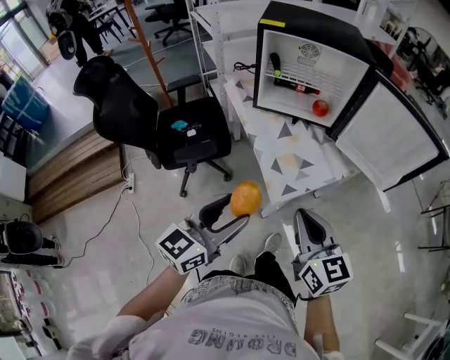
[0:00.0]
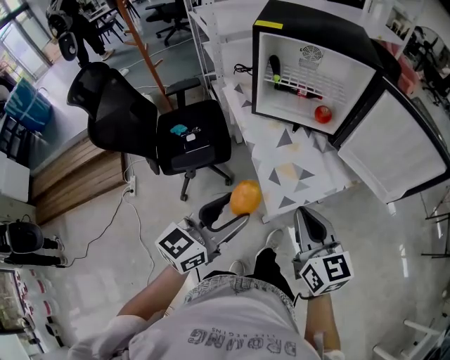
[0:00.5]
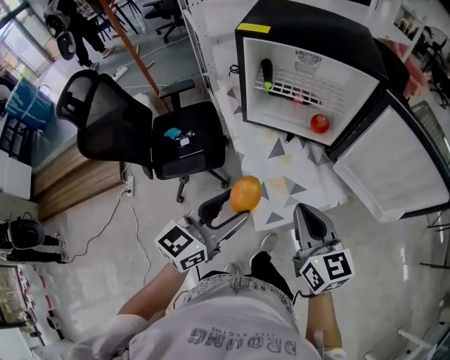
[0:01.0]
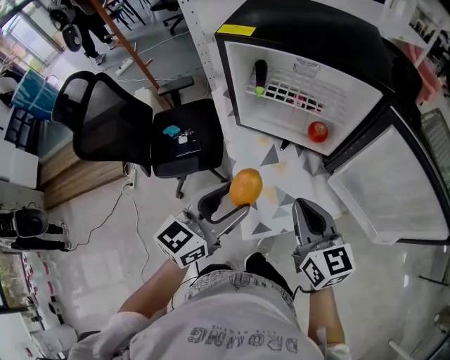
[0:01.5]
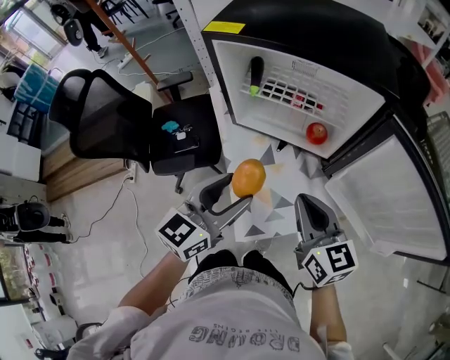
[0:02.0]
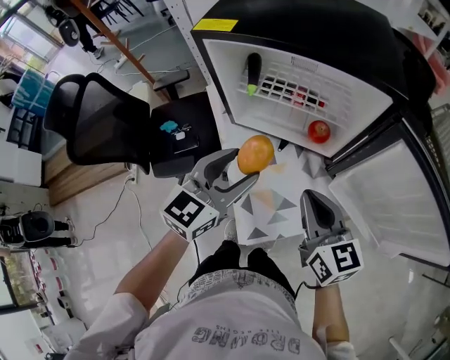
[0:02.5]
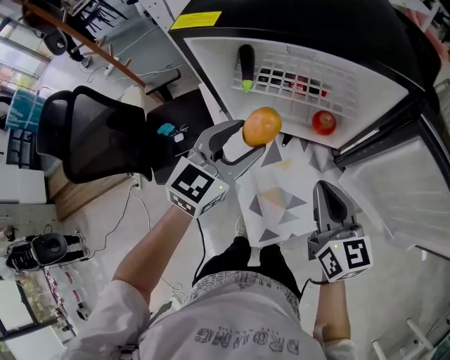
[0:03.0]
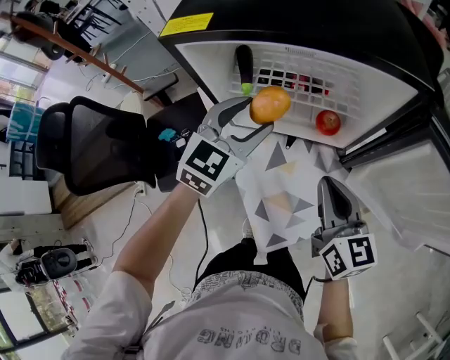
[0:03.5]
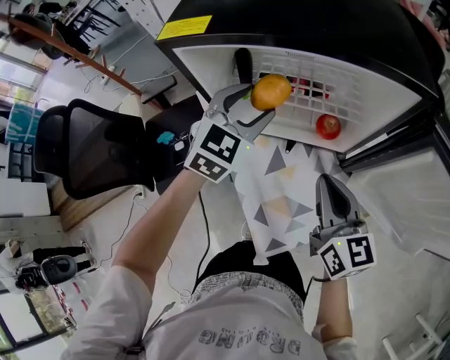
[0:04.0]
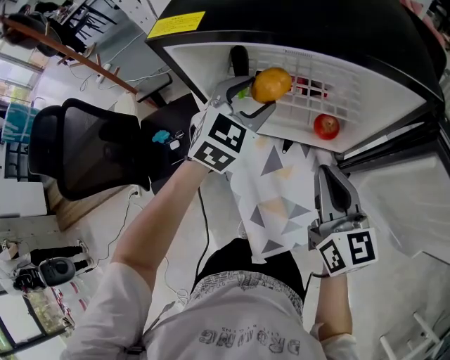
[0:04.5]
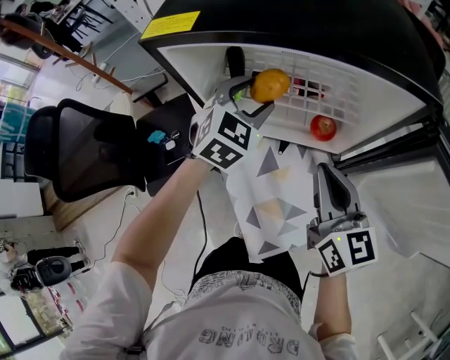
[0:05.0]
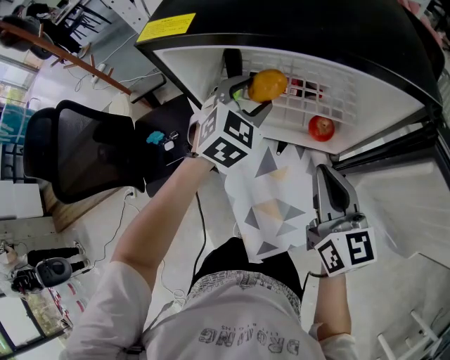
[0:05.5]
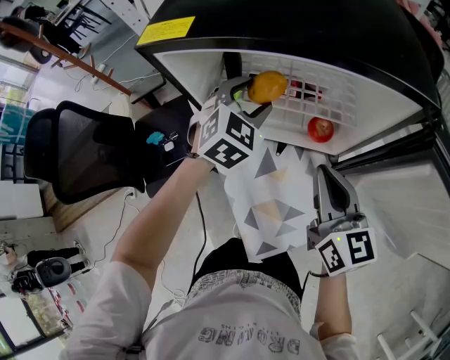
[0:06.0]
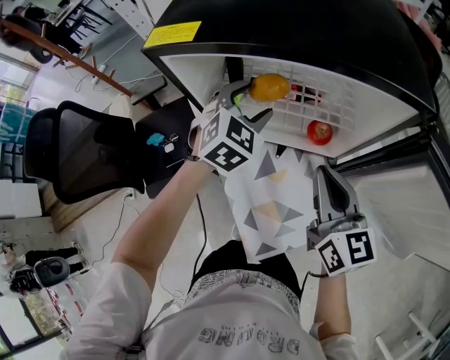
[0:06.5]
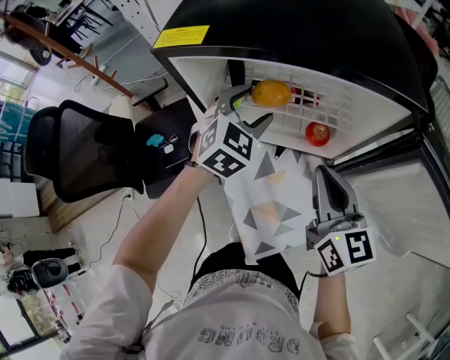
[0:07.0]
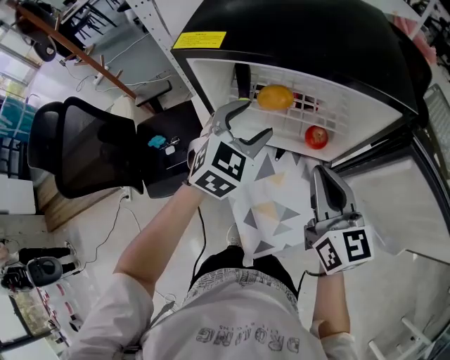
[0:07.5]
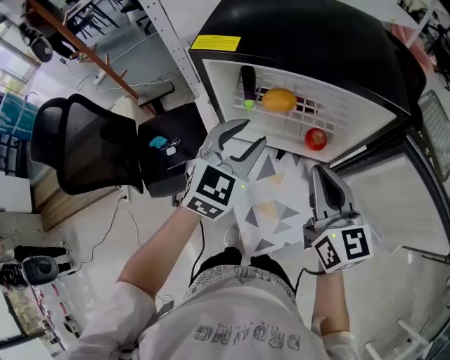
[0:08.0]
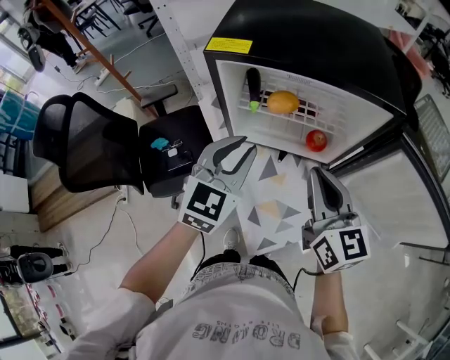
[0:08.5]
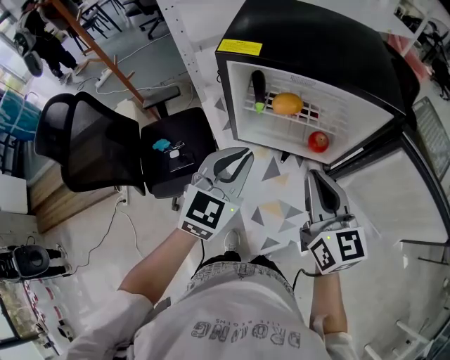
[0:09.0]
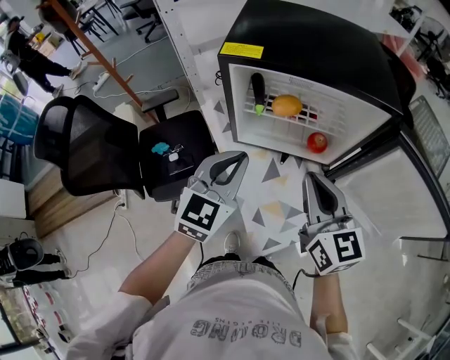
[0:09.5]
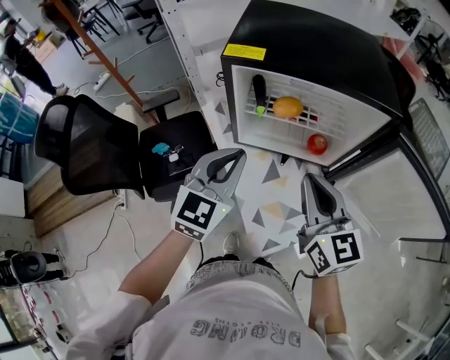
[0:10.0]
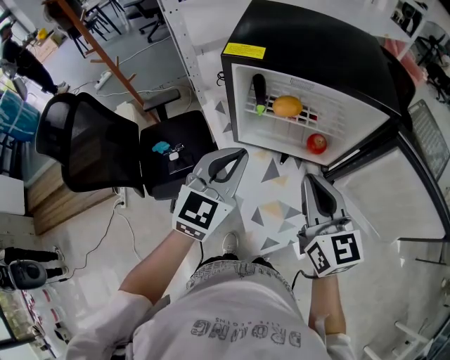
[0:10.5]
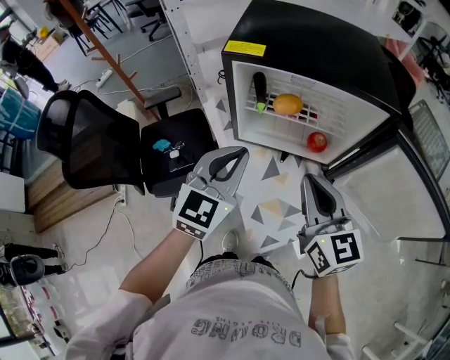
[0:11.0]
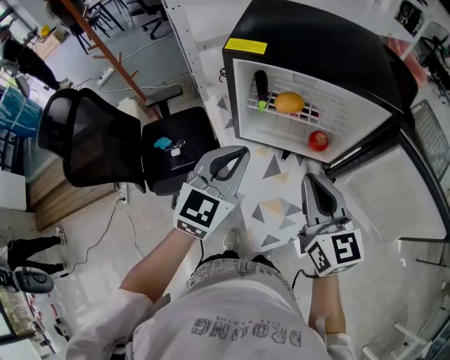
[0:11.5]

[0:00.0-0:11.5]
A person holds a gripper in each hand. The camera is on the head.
0:00.0 to 0:02.0: The right gripper goes approximately 30 cm forward. Meanwhile the left gripper travels forward and to the right by some 30 cm.
0:02.0 to 0:04.0: The right gripper is displaced forward by some 10 cm; the left gripper shifts about 25 cm forward, and changes its angle by roughly 40 degrees.
0:04.0 to 0:06.0: The left gripper changes place by approximately 5 cm.
0:06.0 to 0:07.5: The right gripper shifts by about 5 cm. Meanwhile the left gripper travels backward and upward by approximately 10 cm.
0:07.5 to 0:09.5: The left gripper is displaced backward and to the left by some 15 cm, and closes, while the right gripper goes roughly 10 cm to the left and backward.
0:09.5 to 0:11.5: The grippers stay close to where they were, moving slightly.

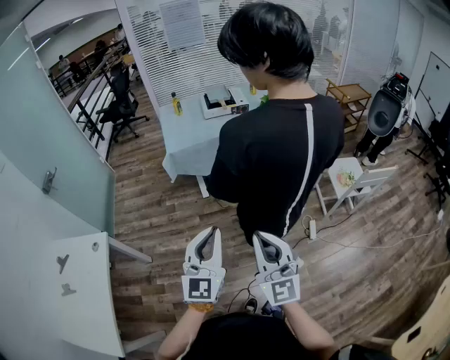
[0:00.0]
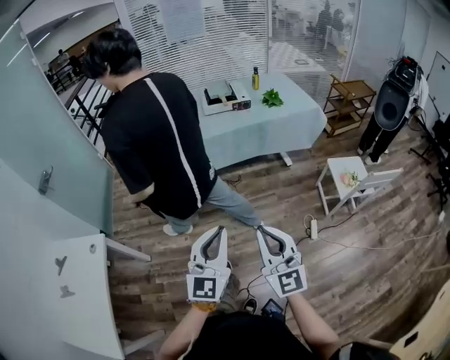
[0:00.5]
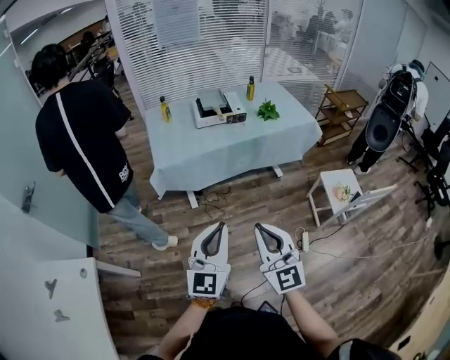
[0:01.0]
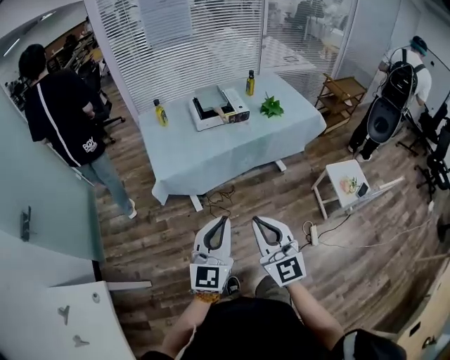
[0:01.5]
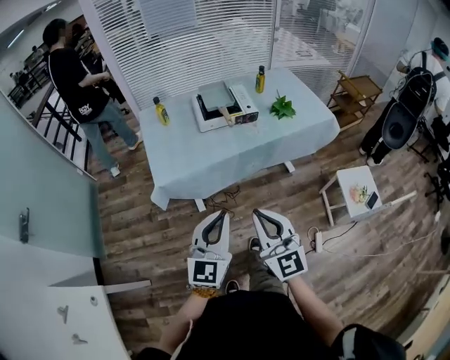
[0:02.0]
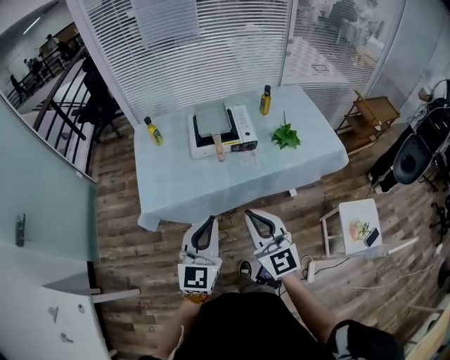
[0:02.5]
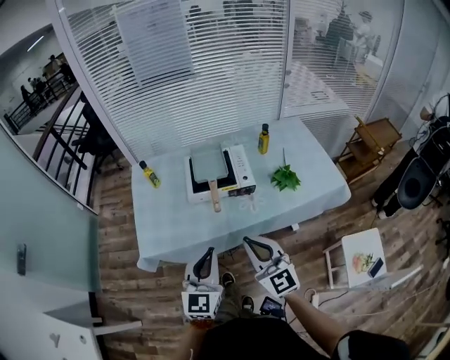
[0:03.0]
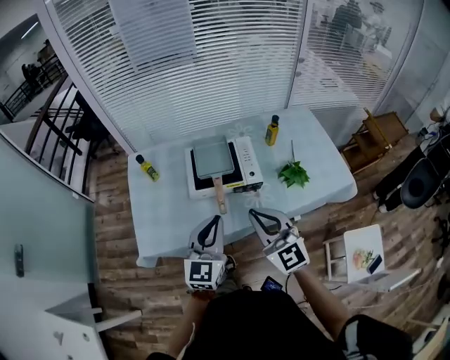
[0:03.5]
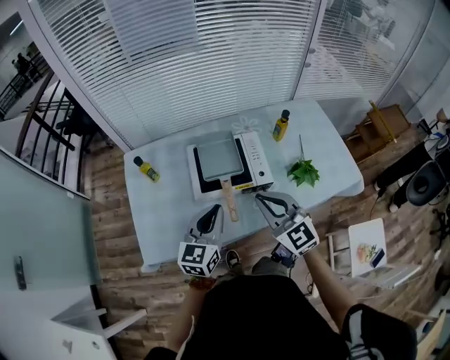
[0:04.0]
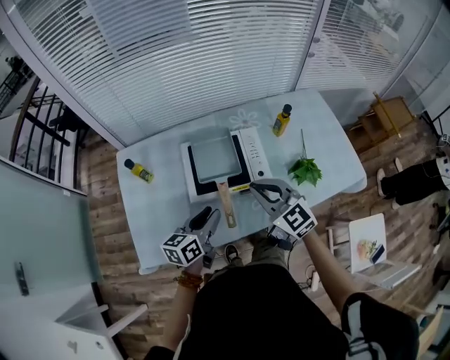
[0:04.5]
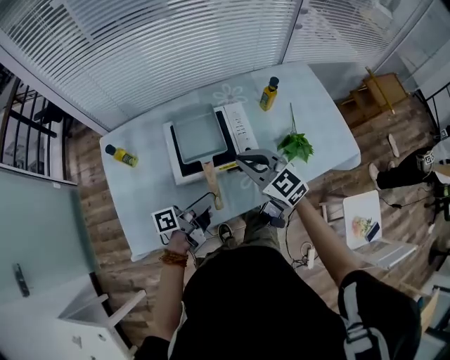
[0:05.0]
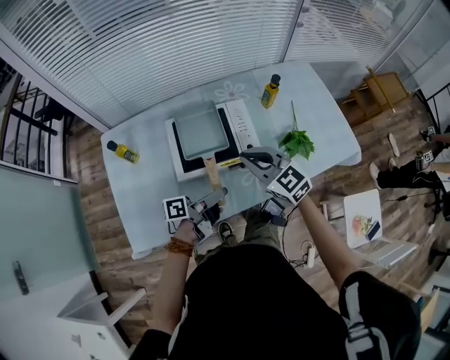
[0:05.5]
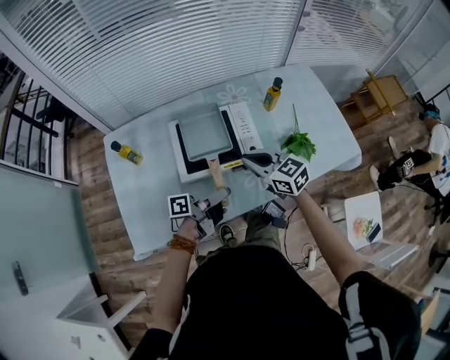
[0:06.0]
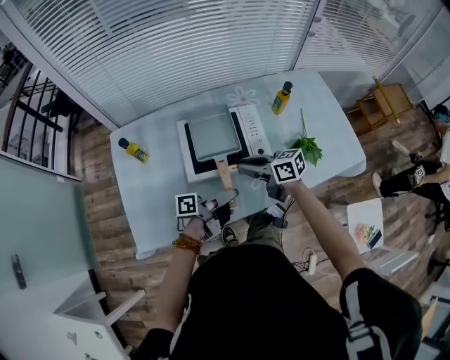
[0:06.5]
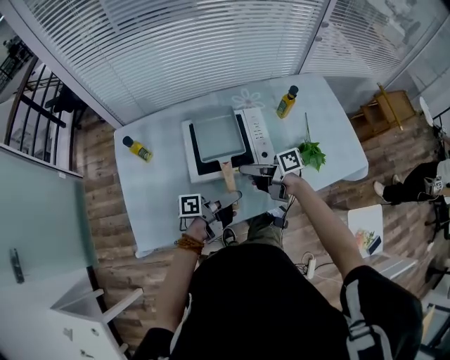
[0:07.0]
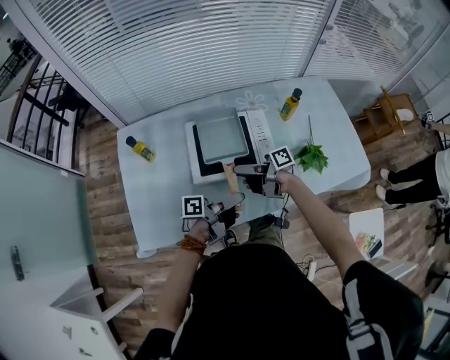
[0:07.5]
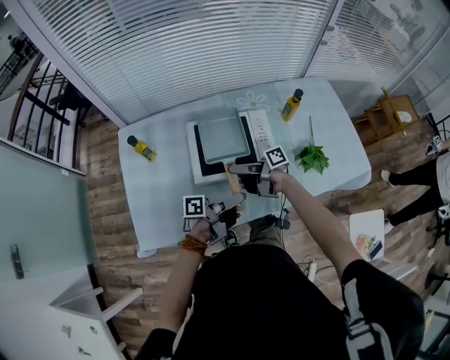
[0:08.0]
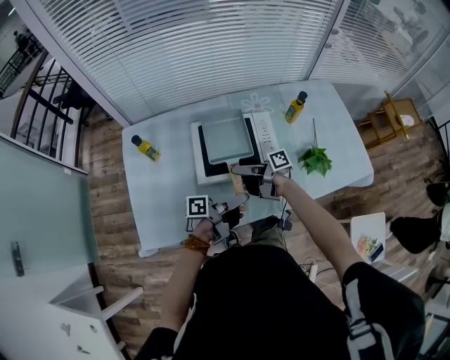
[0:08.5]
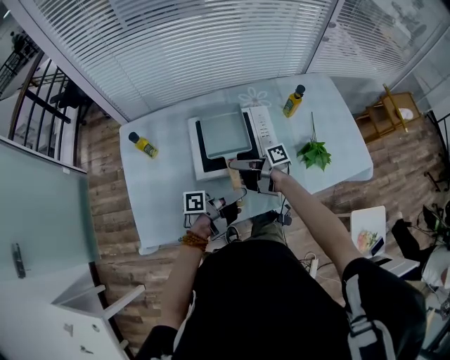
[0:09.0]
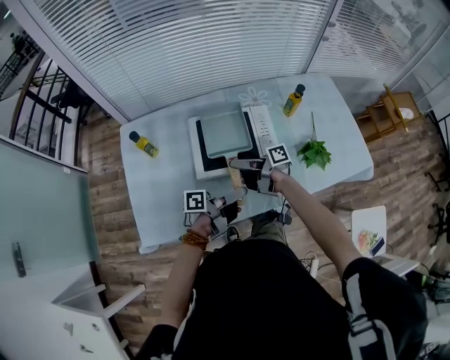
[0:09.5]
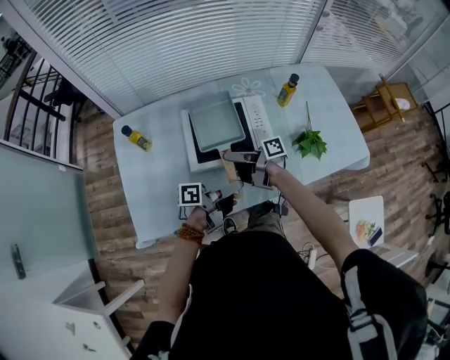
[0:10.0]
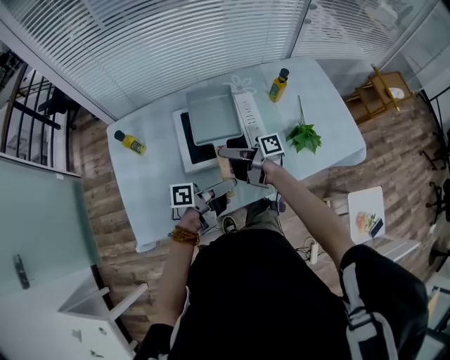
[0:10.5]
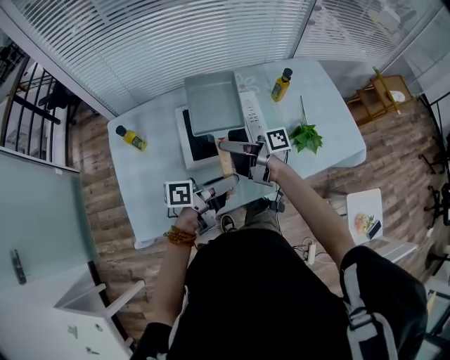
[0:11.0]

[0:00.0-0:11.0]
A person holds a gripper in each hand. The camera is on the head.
0:00.0 to 0:02.0: Both grippers move forward, roughly 40 cm.
0:02.0 to 0:03.5: The two grippers go some 35 cm forward.
0:03.5 to 0:05.5: The right gripper heads forward and downward, covering some 20 cm, while the left gripper is displaced downward and forward by approximately 20 cm, rolls counterclockwise, seen from behind, by roughly 80 degrees, and opens its fingers.
0:05.5 to 0:07.5: The right gripper moves downward, approximately 10 cm, rolls clockwise, seen from behind, by roughly 80 degrees, and opens its fingers.
0:07.5 to 0:09.0: The grippers stay close to where they were, moving slightly.
0:09.0 to 0:11.0: Both grippers travel together upward, about 10 cm.

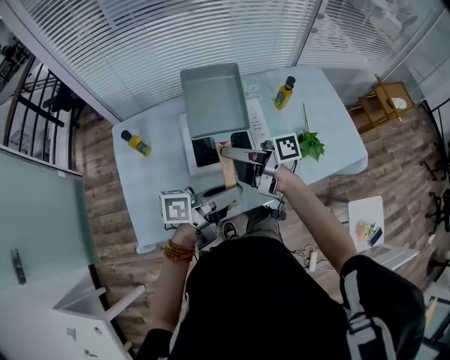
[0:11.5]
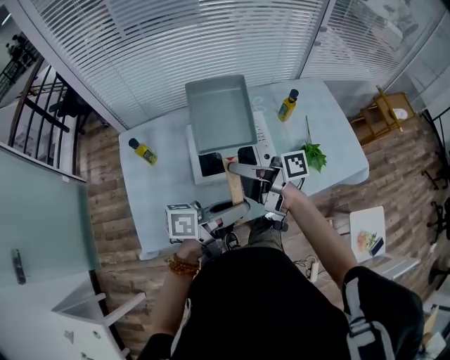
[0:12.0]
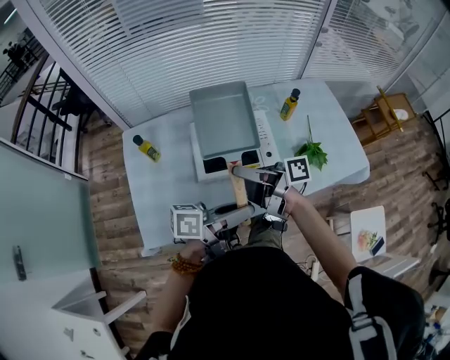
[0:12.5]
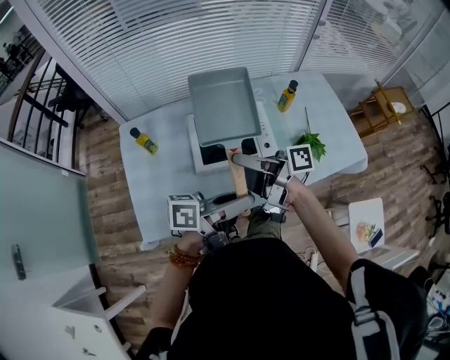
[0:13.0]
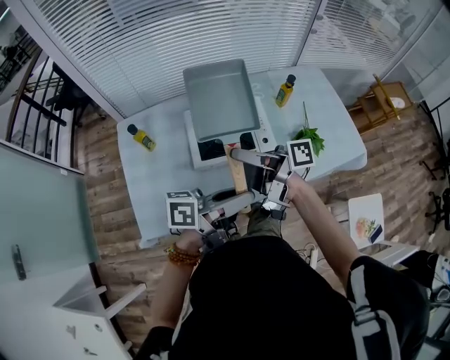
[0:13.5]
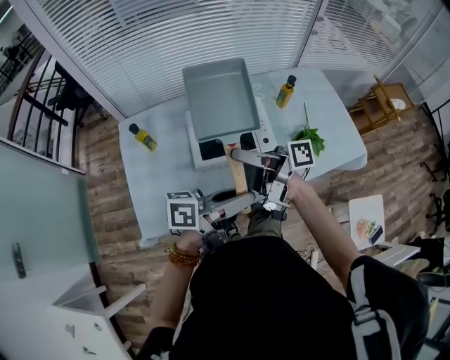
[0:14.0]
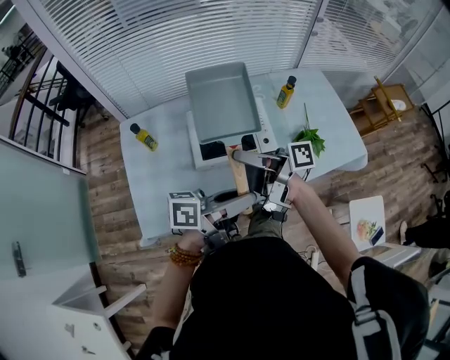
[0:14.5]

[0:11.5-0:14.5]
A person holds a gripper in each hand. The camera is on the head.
0:11.5 to 0:13.0: The left gripper shifts by about 5 cm.
0:13.0 to 0:14.5: The grippers move only a little.

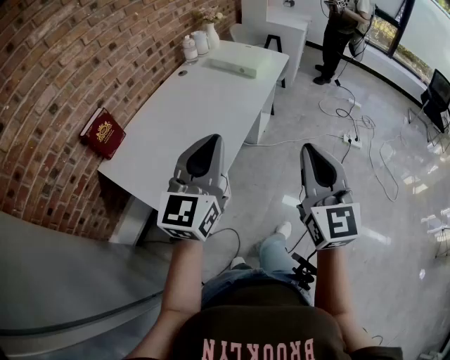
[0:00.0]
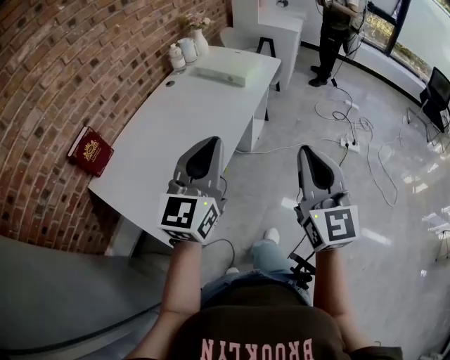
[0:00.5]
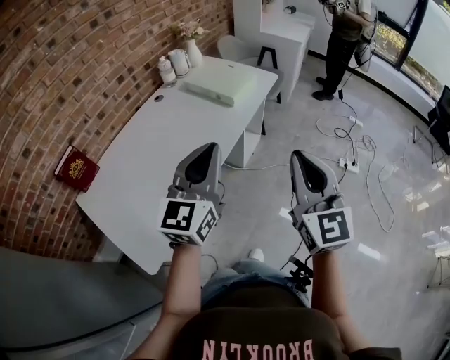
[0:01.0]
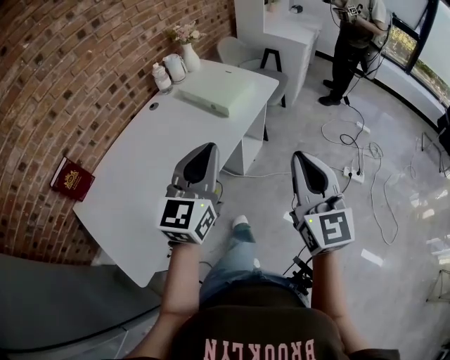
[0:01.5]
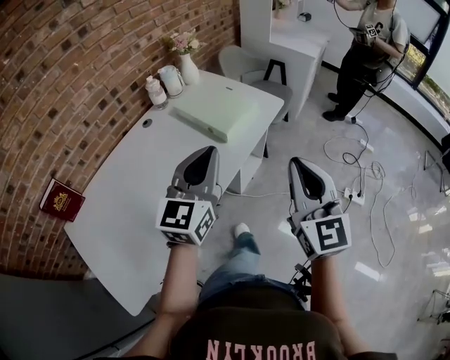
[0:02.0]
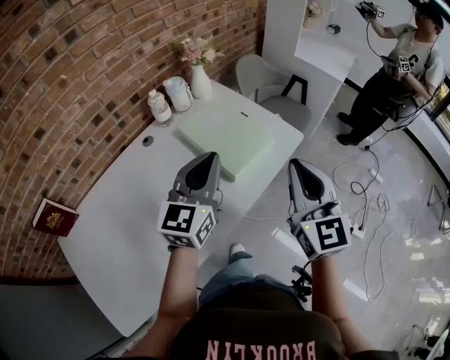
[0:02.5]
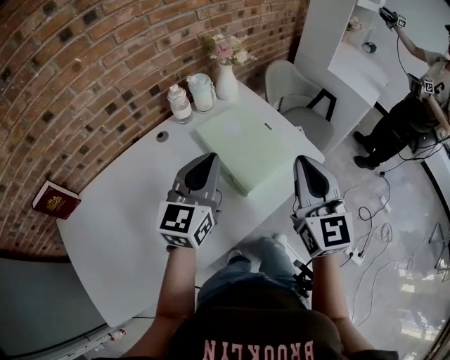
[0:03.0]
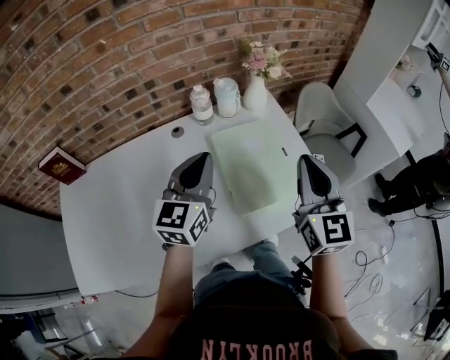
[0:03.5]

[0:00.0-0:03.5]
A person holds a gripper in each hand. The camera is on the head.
0:00.0 to 0:02.0: The two grippers travel together, forward and to the right, roughly 40 cm.
0:02.0 to 0:03.5: The right gripper shifts by roughly 40 cm, and turns by about 30 degrees; the left gripper changes place by roughly 30 cm, and swivels about 40 degrees.
